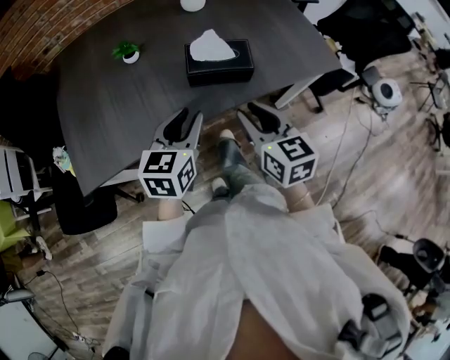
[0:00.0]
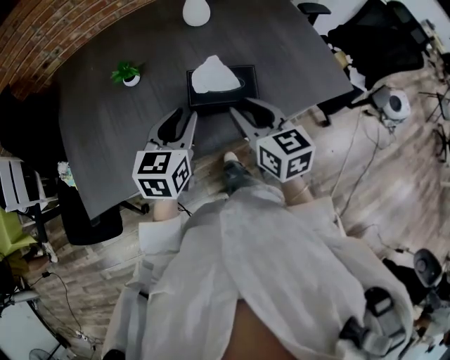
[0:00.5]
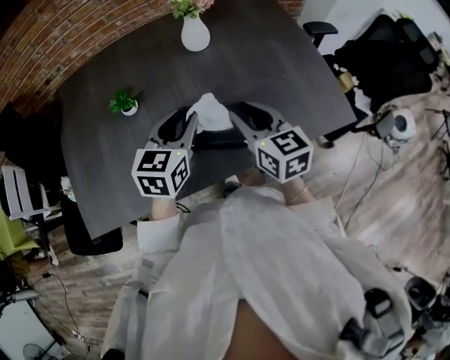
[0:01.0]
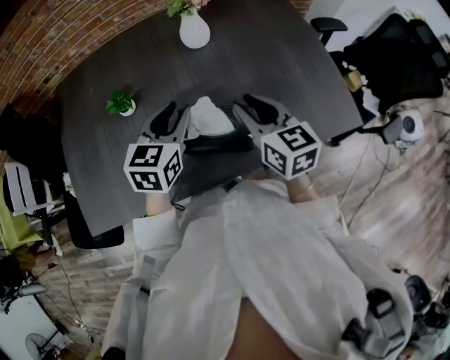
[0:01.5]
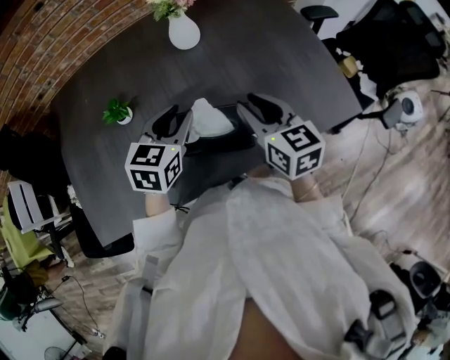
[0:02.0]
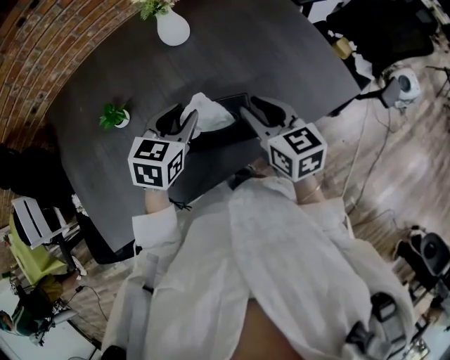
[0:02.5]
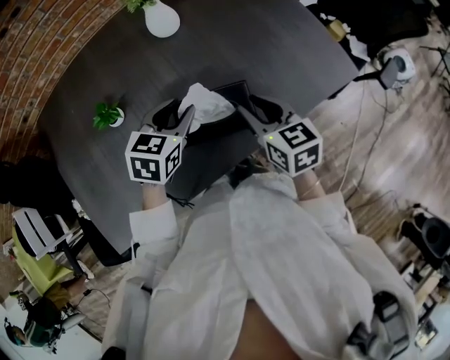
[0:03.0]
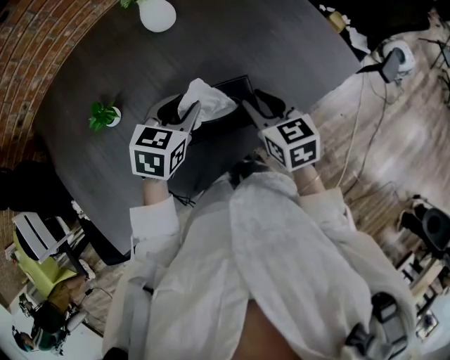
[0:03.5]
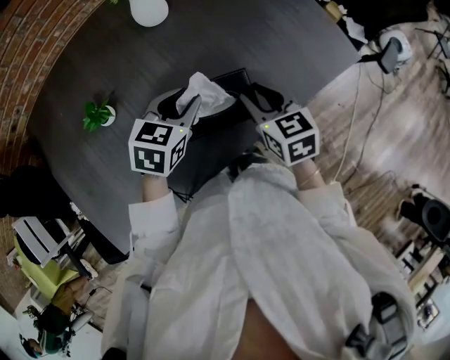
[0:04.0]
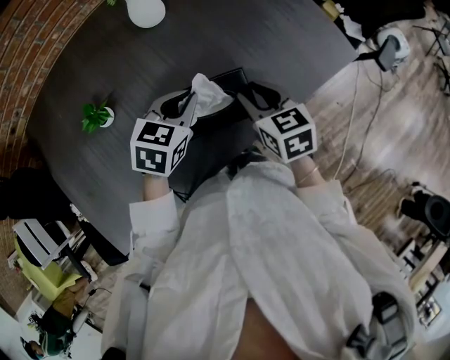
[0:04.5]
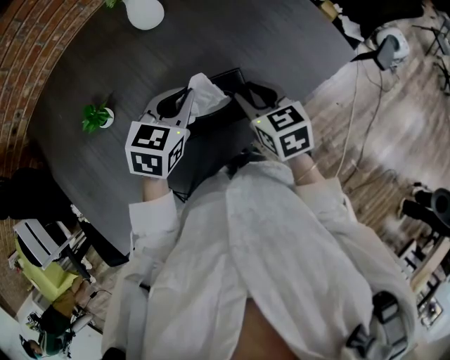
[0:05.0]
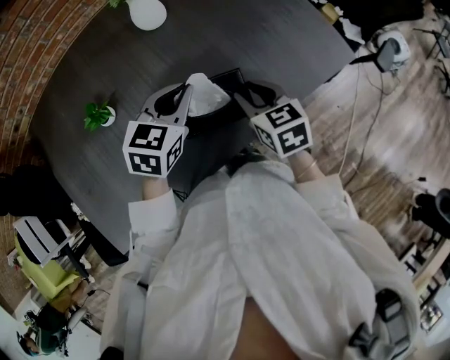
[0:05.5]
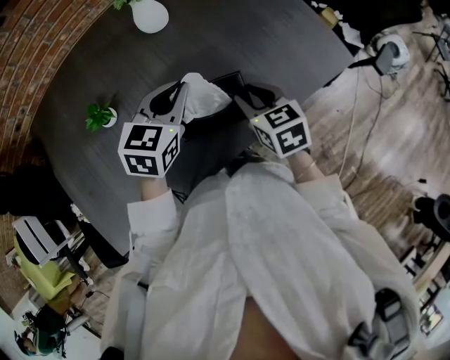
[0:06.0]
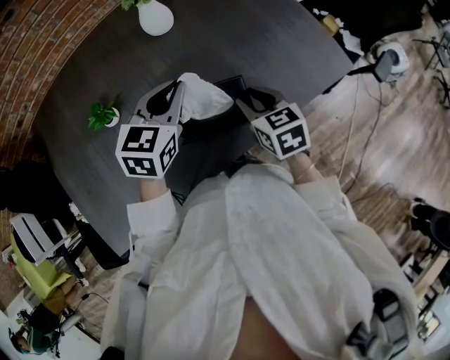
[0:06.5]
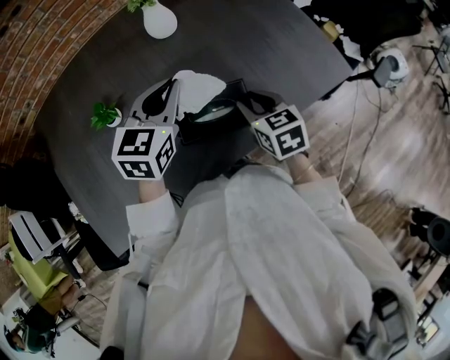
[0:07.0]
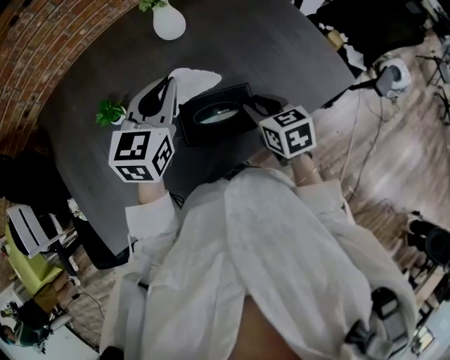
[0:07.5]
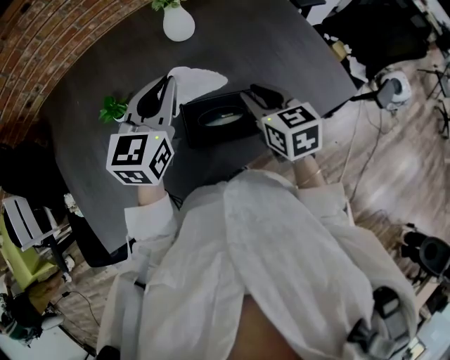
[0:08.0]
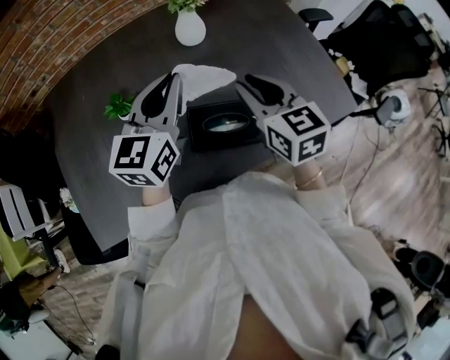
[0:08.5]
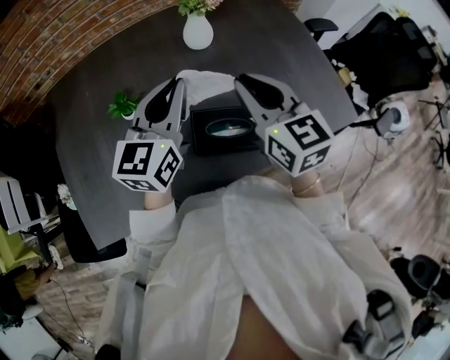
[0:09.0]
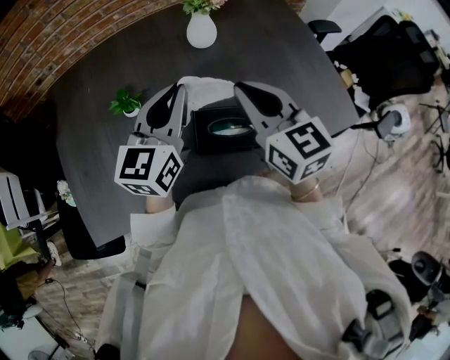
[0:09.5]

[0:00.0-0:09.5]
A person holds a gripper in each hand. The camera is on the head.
0:00.0 to 0:02.0: The two grippers go approximately 25 cm forward.
0:02.0 to 0:04.0: Both grippers move downward, about 10 cm. The right gripper changes its angle by approximately 20 degrees. Meanwhile the left gripper turns by some 20 degrees.
0:04.0 to 0:05.5: The left gripper closes its fingers.
0:05.5 to 0:07.5: The left gripper heads upward and to the left, covering approximately 10 cm, and rotates approximately 20 degrees.
0:07.5 to 0:09.5: The left gripper changes place by roughly 5 cm; the right gripper travels upward and to the left by some 20 cm, tilts its fingers some 30 degrees upward, and closes.

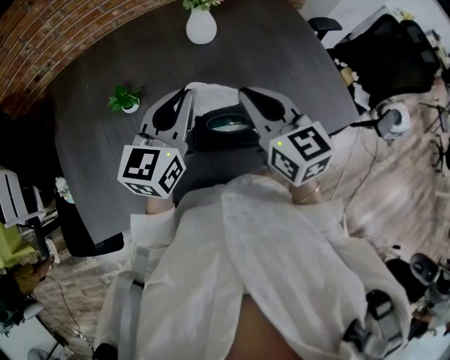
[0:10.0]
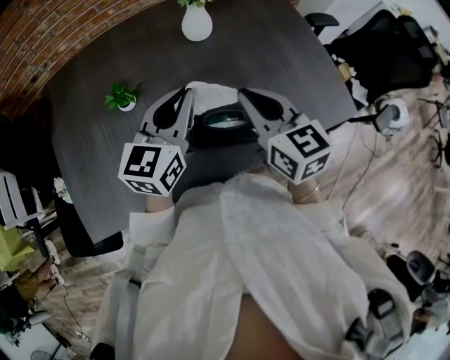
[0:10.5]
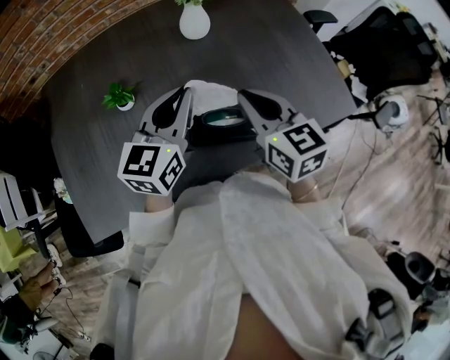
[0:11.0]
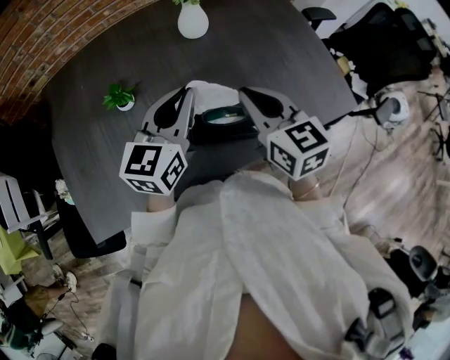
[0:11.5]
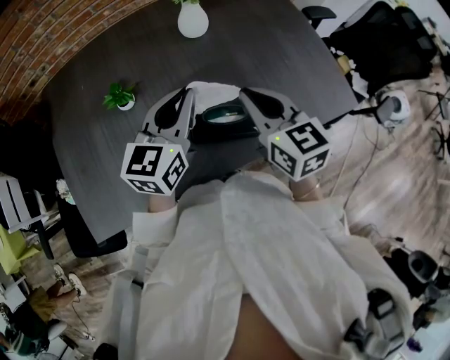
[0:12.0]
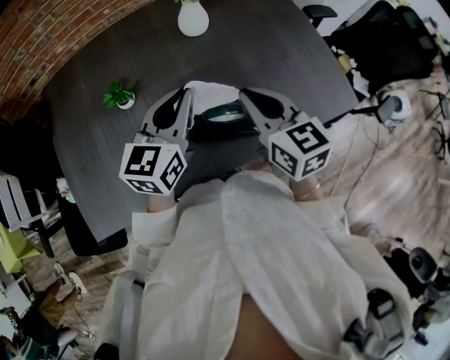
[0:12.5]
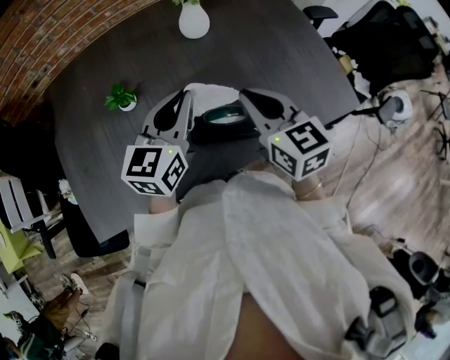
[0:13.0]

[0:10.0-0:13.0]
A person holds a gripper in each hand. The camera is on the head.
0:10.0 to 0:11.5: There are only small adjustments of the grippers.
0:11.5 to 0:13.0: Neither gripper changes place.

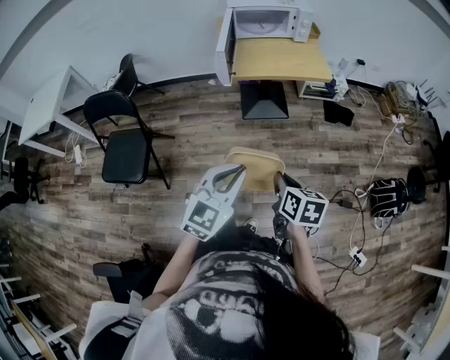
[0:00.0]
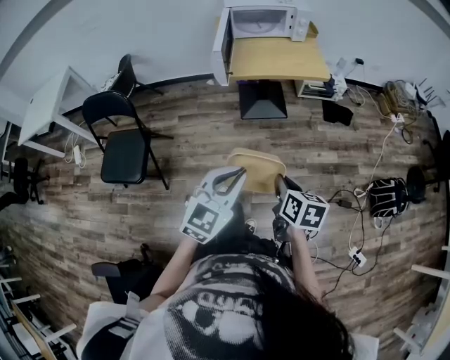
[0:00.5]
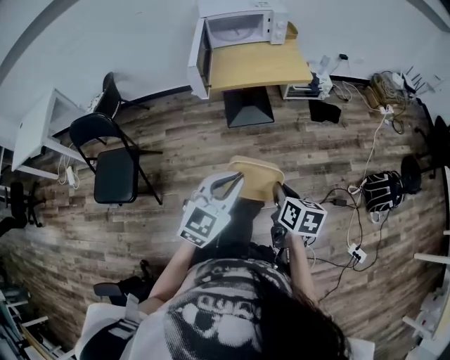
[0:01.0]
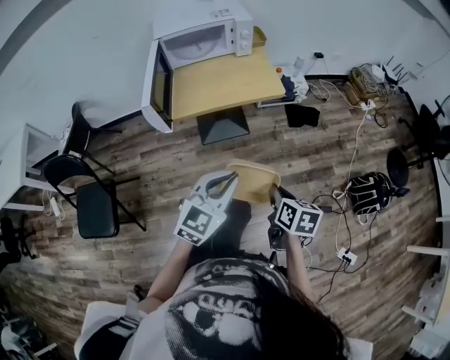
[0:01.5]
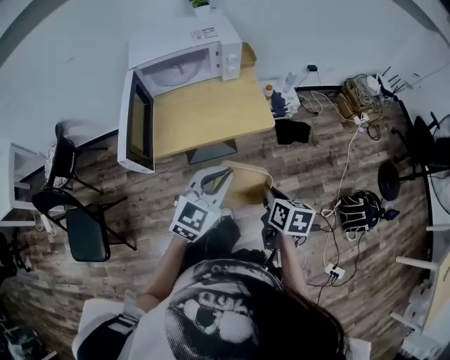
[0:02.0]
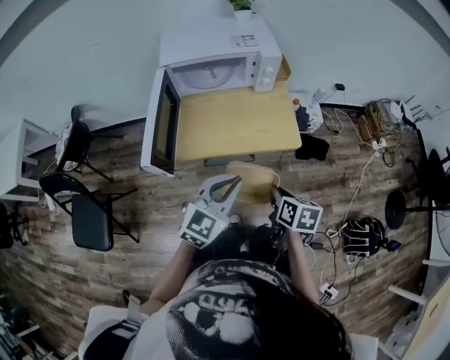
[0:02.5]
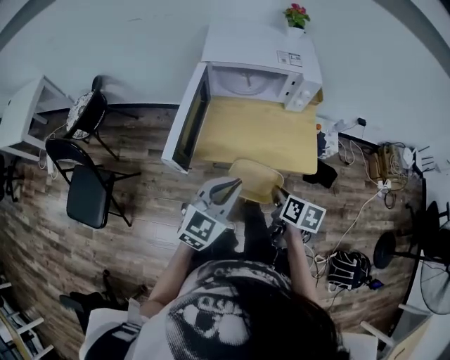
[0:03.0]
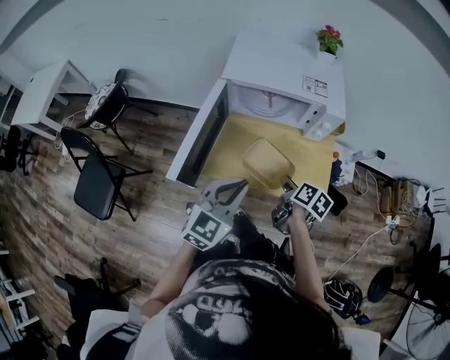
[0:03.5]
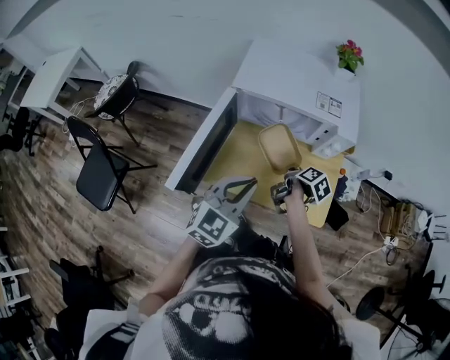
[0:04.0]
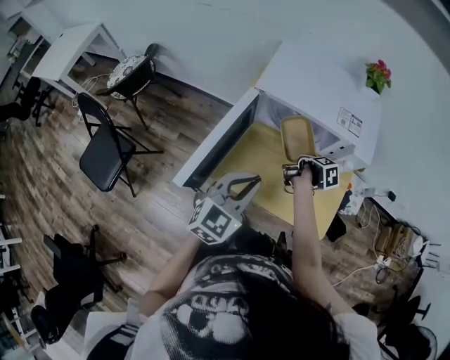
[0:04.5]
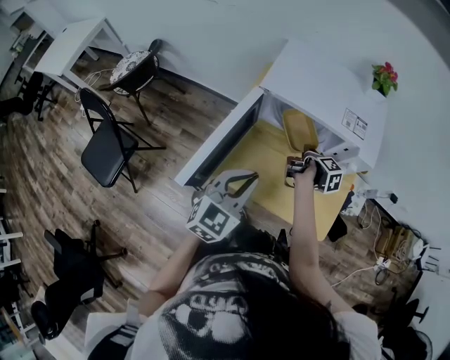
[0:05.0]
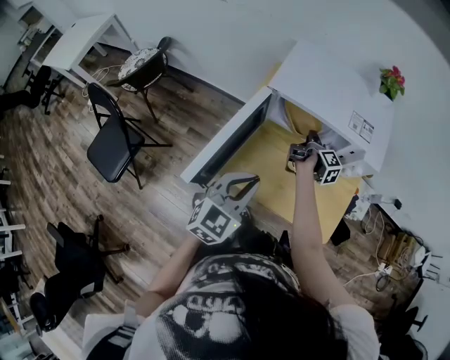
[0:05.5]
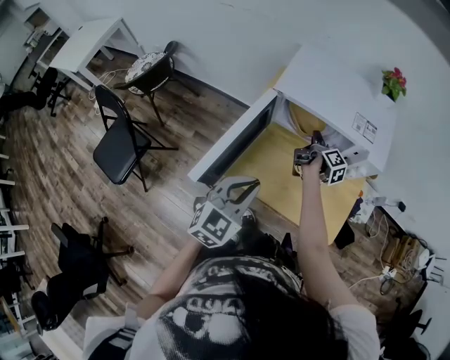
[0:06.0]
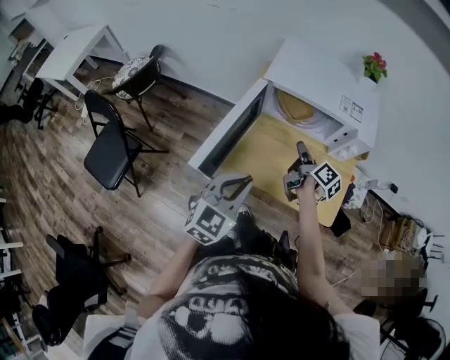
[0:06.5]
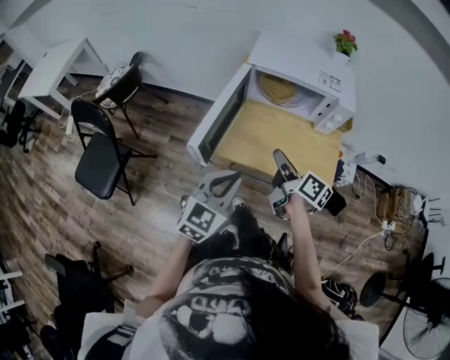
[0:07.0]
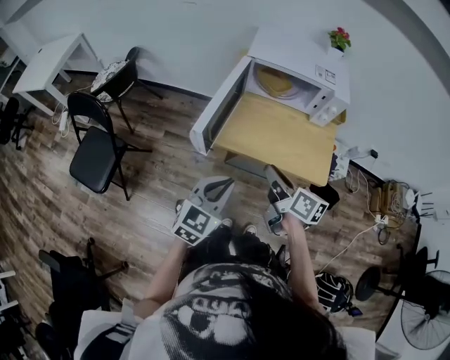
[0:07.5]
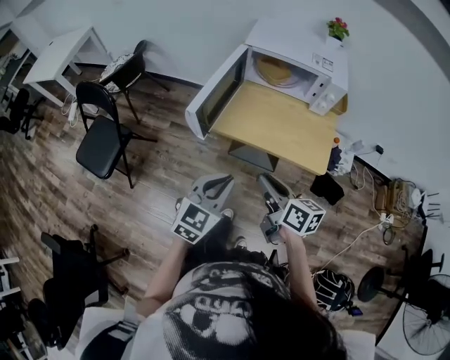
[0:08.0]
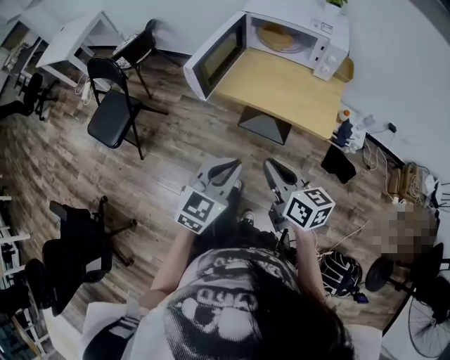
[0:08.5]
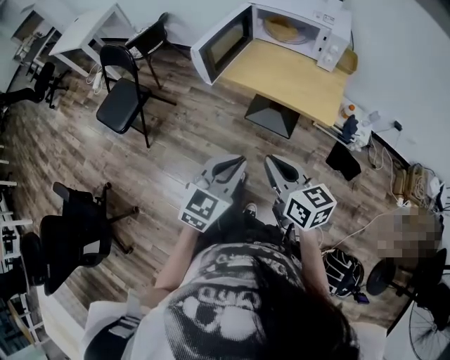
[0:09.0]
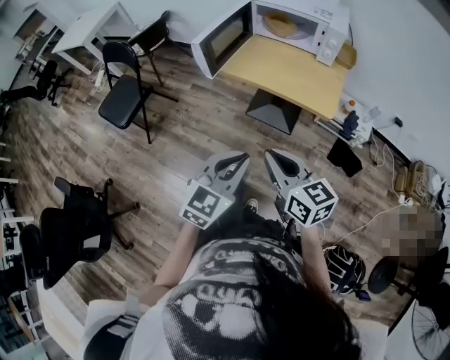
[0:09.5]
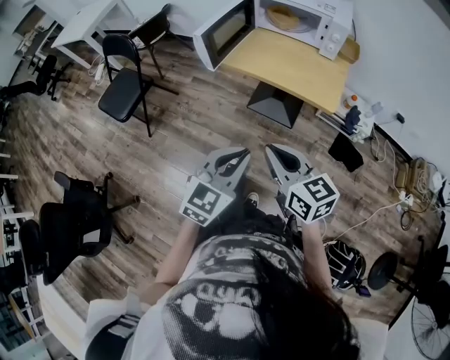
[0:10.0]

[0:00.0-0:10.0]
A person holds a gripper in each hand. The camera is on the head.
0:00.0 to 0:02.0: The right gripper moves forward and to the right, roughly 40 cm. Meanwhile the left gripper moves forward, about 40 cm.
0:02.0 to 0:04.0: The right gripper goes approximately 40 cm forward, and turns by approximately 30 degrees. Meanwhile the left gripper is displaced forward and to the left by approximately 25 cm, and rotates roughly 30 degrees.
0:04.0 to 0:06.0: The left gripper travels to the left by roughly 5 cm. Meanwhile the right gripper heads forward and to the left, covering some 15 cm, and changes its angle by roughly 30 degrees.
0:06.0 to 0:08.0: The left gripper goes roughly 25 cm backward. The right gripper travels backward by some 50 cm, and rotates around the line of its fingers by approximately 40 degrees, counterclockwise from behind.
0:08.0 to 0:10.0: The two grippers go some 20 cm backward. The right gripper swivels about 30 degrees, and closes.

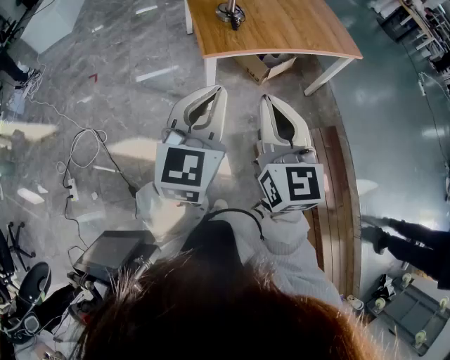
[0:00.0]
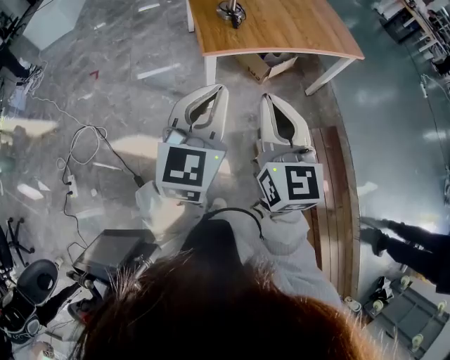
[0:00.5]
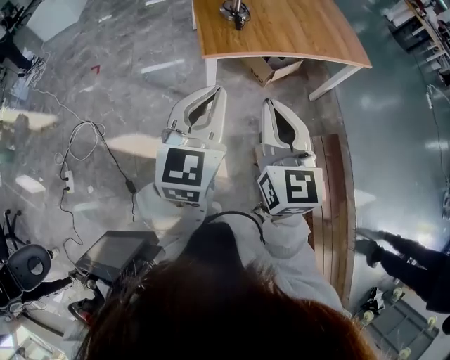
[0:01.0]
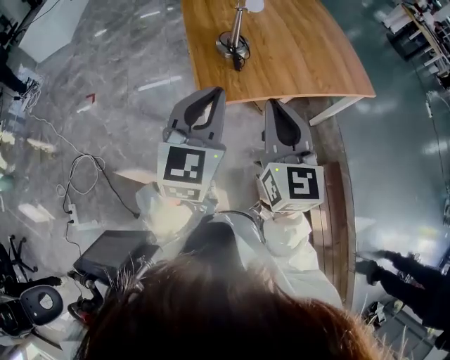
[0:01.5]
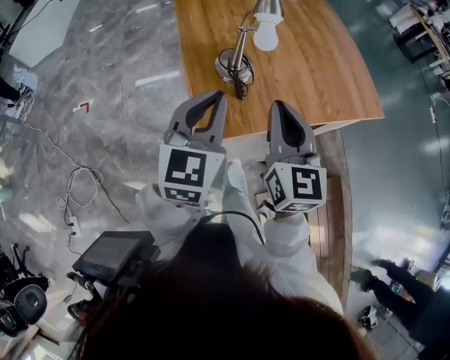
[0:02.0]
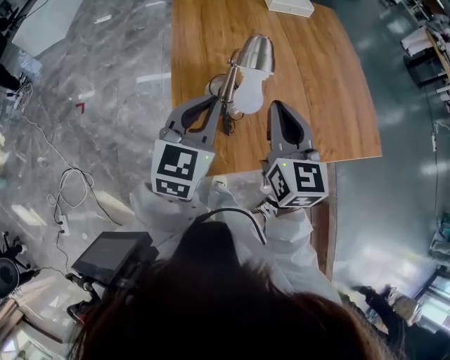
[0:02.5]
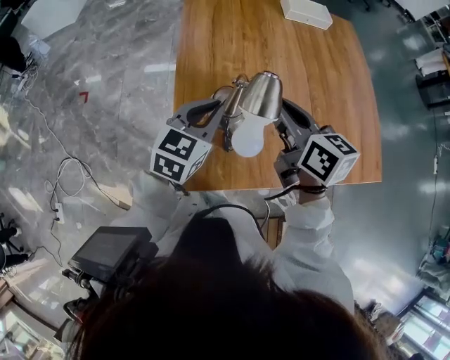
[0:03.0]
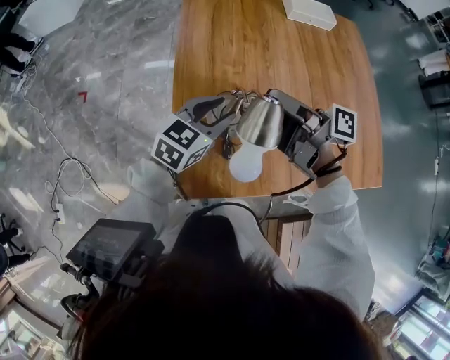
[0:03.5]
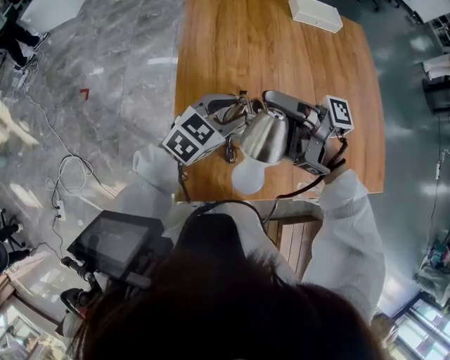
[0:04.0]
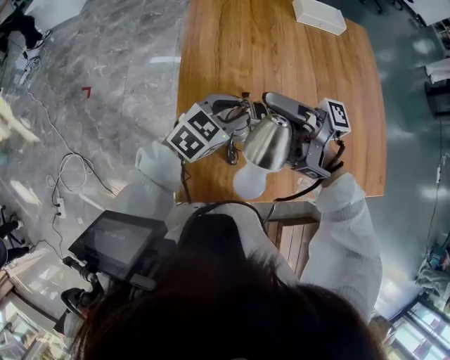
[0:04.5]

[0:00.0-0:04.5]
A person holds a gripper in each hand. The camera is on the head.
0:00.0 to 0:02.0: Both grippers are carried forward, about 50 cm.
0:02.0 to 0:04.5: The right gripper shifts about 30 cm forward, rotates approximately 120 degrees, and opens, while the left gripper goes about 35 cm forward and downward, rotates about 30 degrees, and opens.
